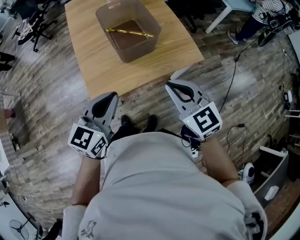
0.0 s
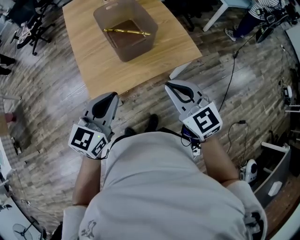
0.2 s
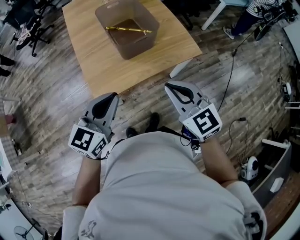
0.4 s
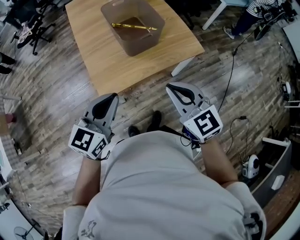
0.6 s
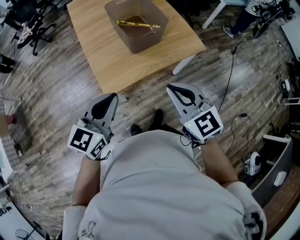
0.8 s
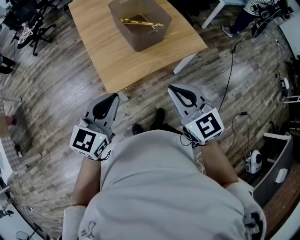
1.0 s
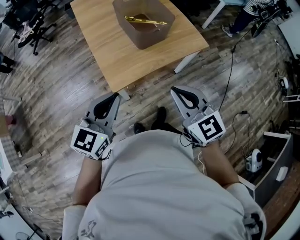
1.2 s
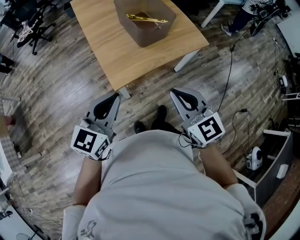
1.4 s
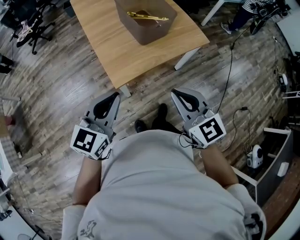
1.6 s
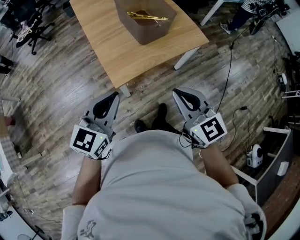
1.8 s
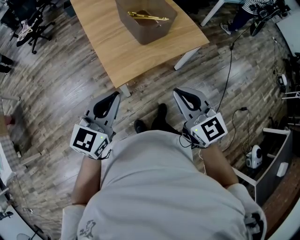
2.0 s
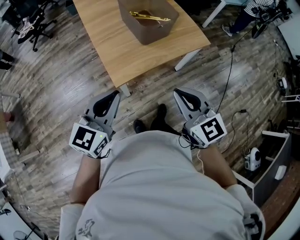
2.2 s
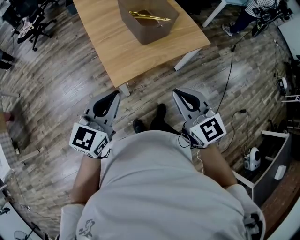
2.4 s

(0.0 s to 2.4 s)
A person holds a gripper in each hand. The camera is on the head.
0.0 s - 1.2 s: The right gripper moves backward and to the left, about 15 cm, while the left gripper is displaced to the left and backward by roughly 15 cm.
1.2 s - 2.4 s: There are only small adjustments of the grippers.

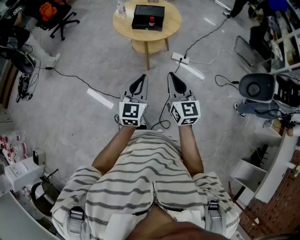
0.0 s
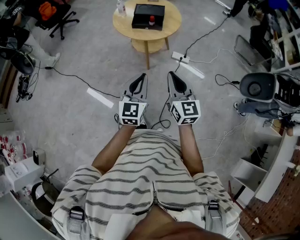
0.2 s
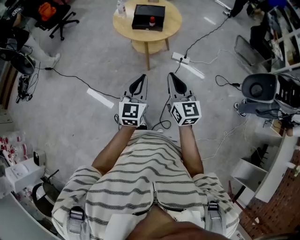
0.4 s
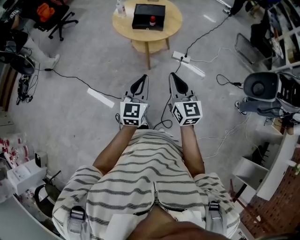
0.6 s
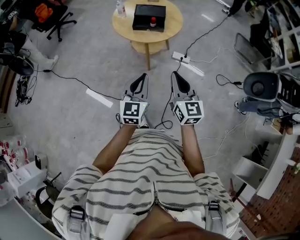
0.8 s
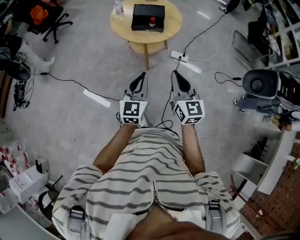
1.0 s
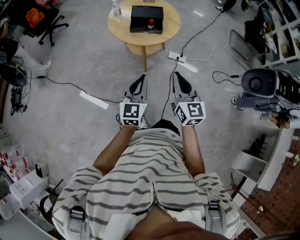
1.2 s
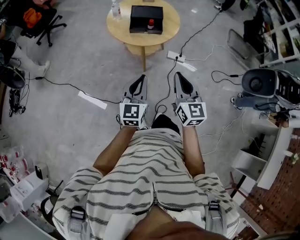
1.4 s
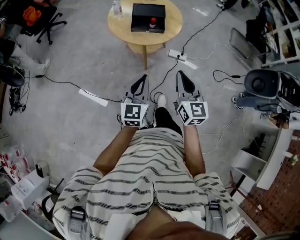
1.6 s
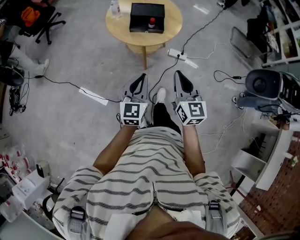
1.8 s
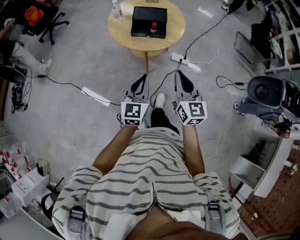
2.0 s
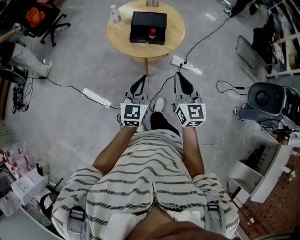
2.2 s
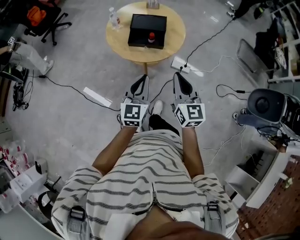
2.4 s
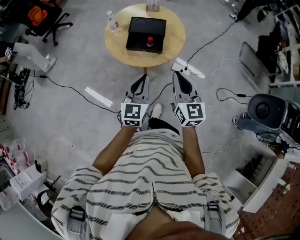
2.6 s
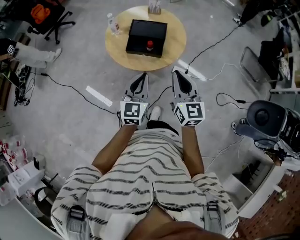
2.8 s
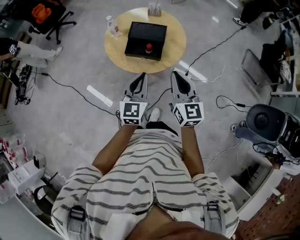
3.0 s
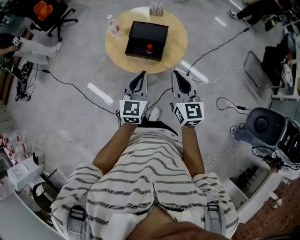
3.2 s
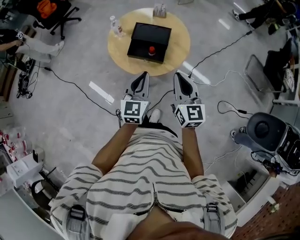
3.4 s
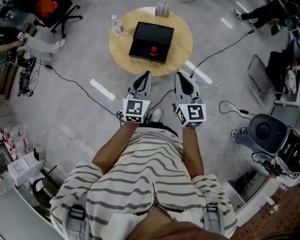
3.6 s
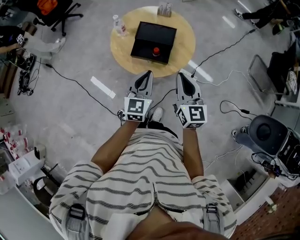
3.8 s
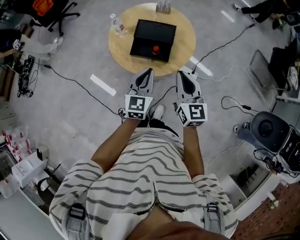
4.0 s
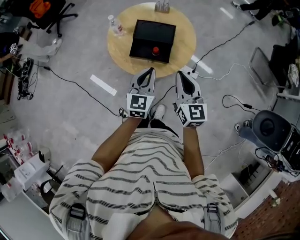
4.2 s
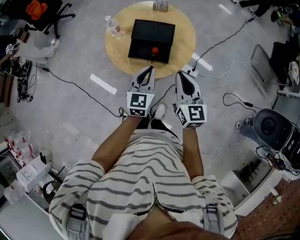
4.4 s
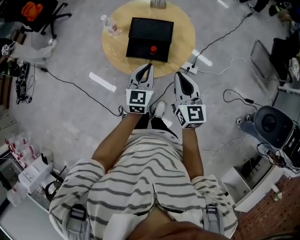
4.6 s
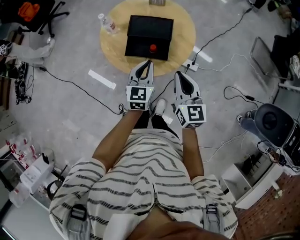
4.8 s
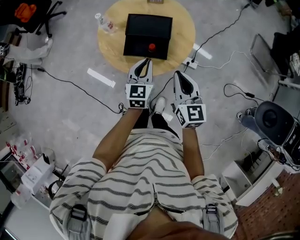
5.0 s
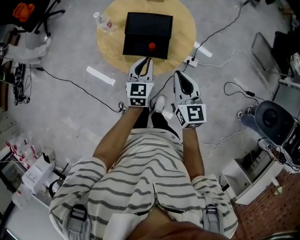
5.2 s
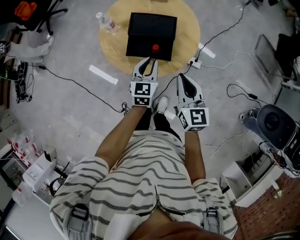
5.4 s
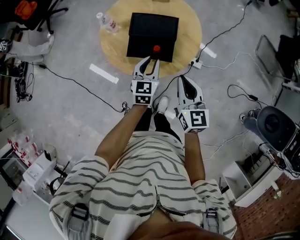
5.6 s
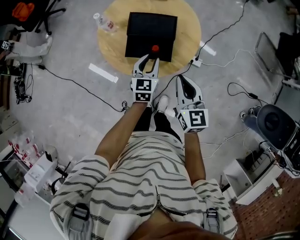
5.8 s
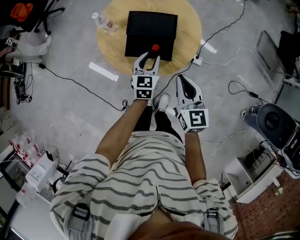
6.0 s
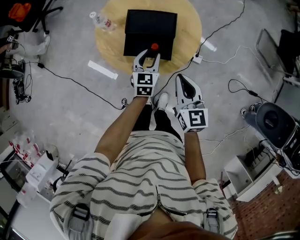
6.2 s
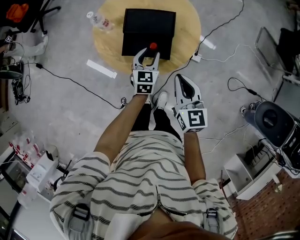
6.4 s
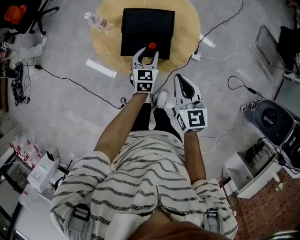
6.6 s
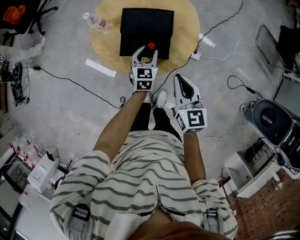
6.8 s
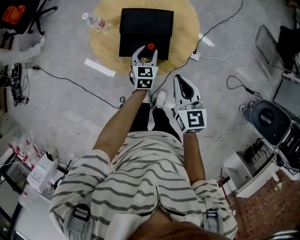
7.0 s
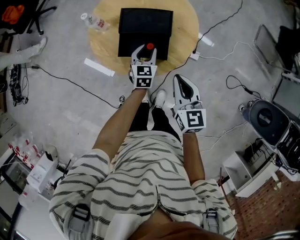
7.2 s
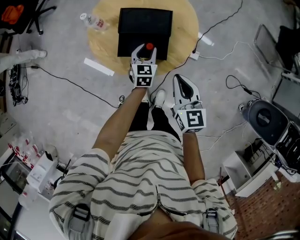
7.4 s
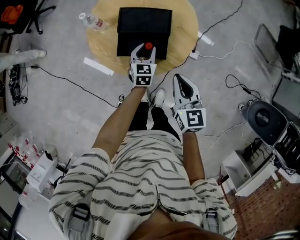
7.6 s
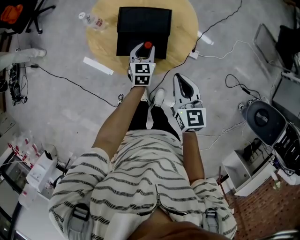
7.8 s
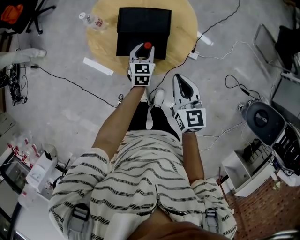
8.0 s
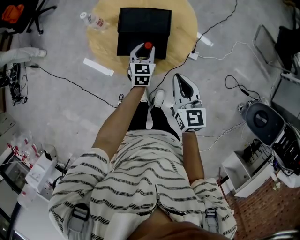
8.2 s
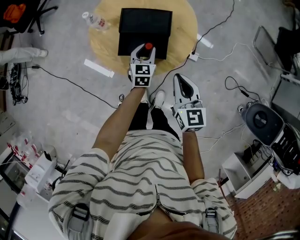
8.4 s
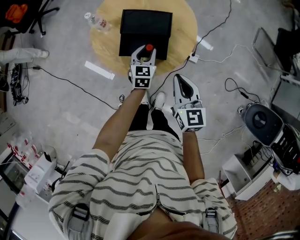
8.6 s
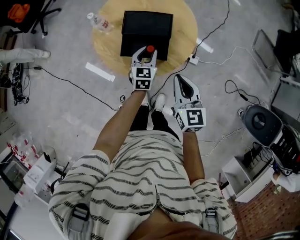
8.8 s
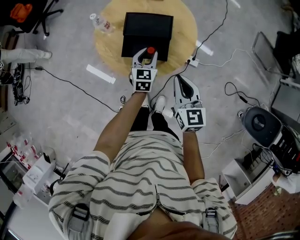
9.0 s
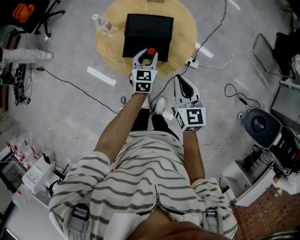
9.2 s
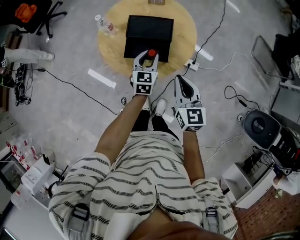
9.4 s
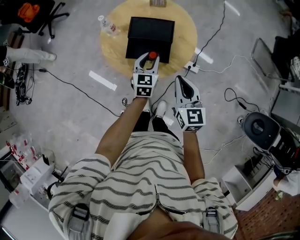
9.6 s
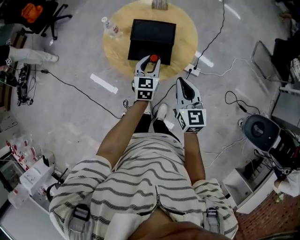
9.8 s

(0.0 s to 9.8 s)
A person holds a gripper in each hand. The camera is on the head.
0.0 s - 1.4 s: The right gripper heads forward, covering some 10 cm. Meanwhile the left gripper travels forward and to the left by about 10 cm.
1.4 s - 2.8 s: Both grippers travel together forward, approximately 20 cm.
2.8 s - 4.2 s: The two grippers go about 10 cm forward.
4.2 s - 5.6 s: The right gripper moves downward, roughly 5 cm, while the left gripper shifts some 15 cm downward and forward.
5.6 s - 7.0 s: The left gripper moves downward and forward, approximately 10 cm.
7.0 s - 8.4 s: Both grippers stay put.
8.4 s - 9.8 s: The left gripper heads upward and backward, covering some 10 cm.

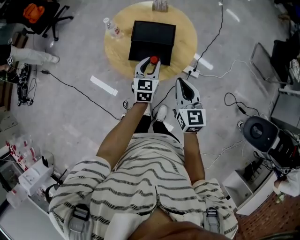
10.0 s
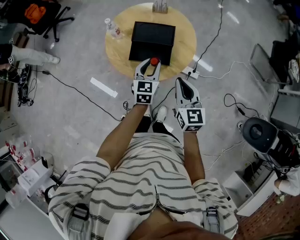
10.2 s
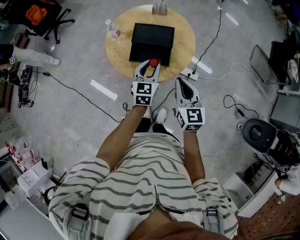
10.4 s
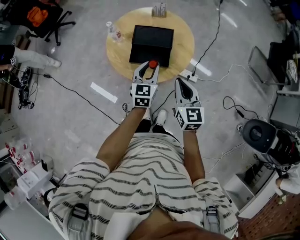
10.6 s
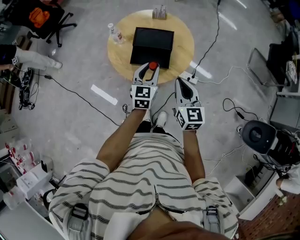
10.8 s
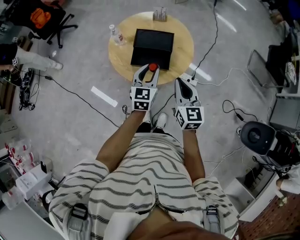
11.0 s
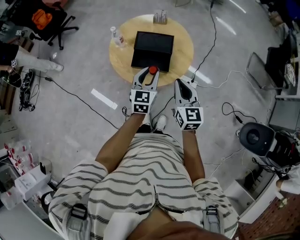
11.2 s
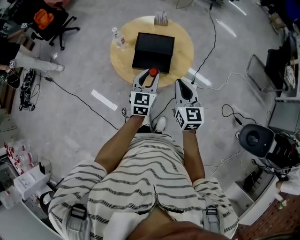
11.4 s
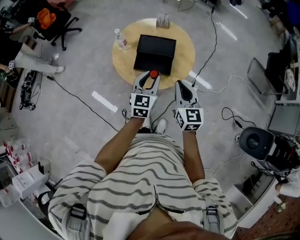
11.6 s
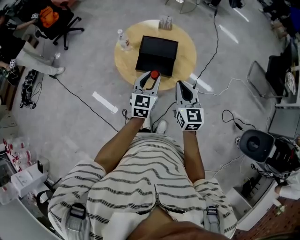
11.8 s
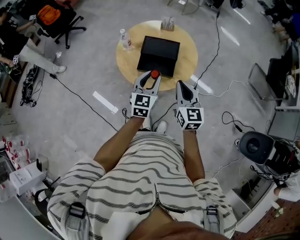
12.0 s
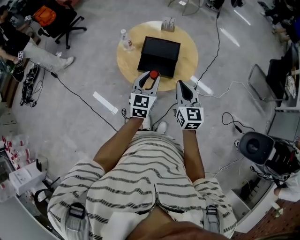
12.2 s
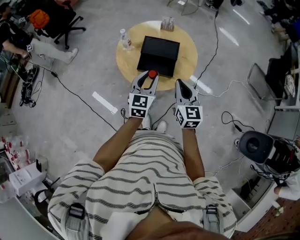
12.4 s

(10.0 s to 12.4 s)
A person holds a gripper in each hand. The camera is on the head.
10.0 s - 11.2 s: The left gripper shifts roughly 5 cm upward.
11.2 s - 12.4 s: The grippers stay close to where they were, moving slightly.

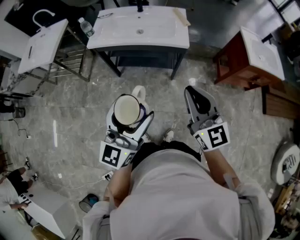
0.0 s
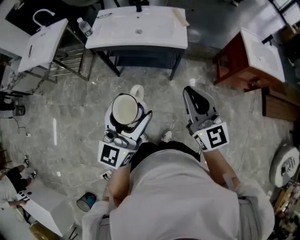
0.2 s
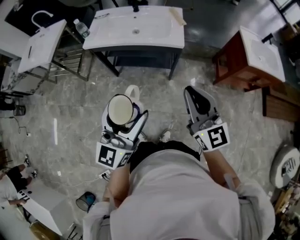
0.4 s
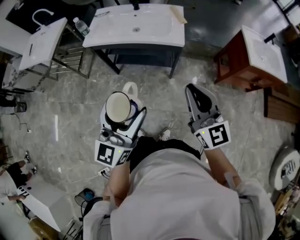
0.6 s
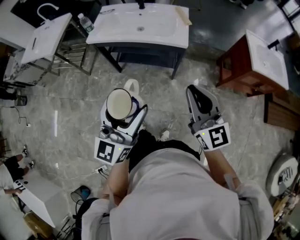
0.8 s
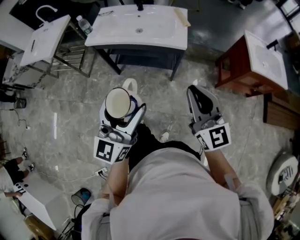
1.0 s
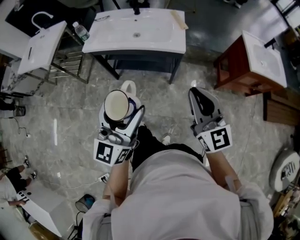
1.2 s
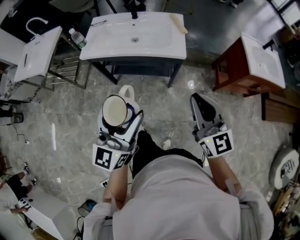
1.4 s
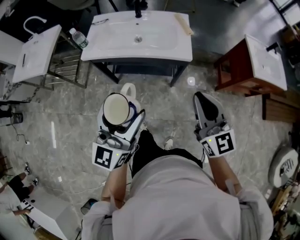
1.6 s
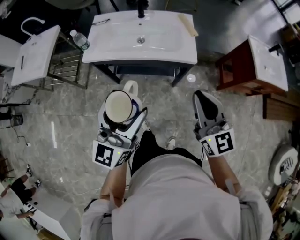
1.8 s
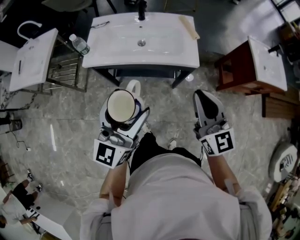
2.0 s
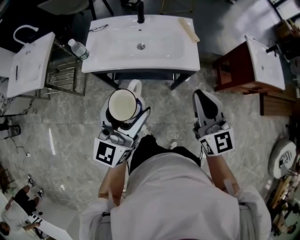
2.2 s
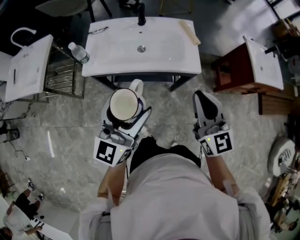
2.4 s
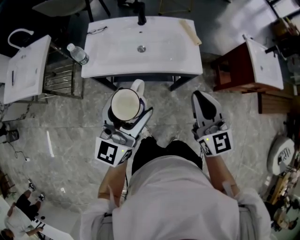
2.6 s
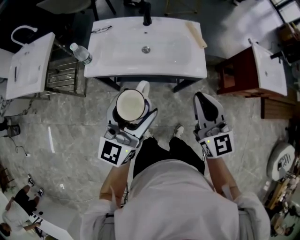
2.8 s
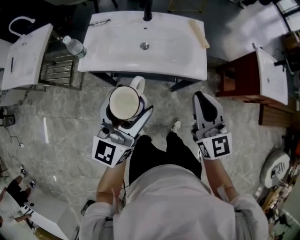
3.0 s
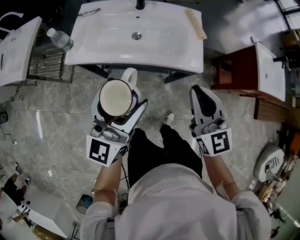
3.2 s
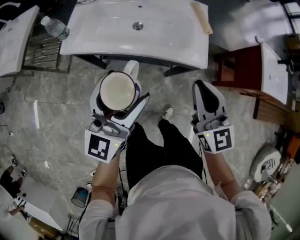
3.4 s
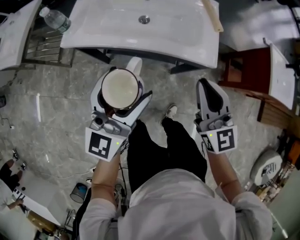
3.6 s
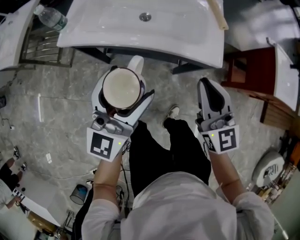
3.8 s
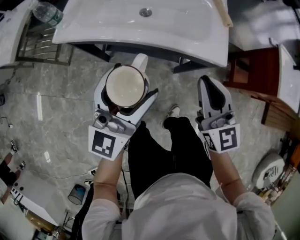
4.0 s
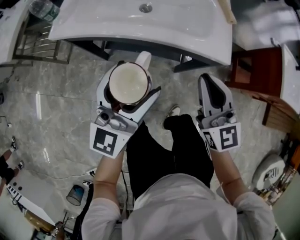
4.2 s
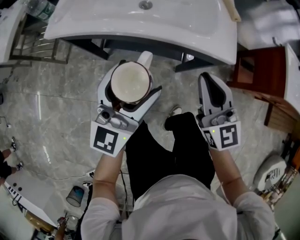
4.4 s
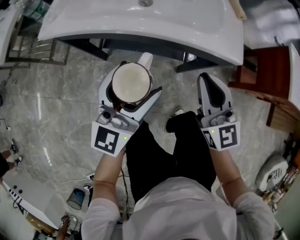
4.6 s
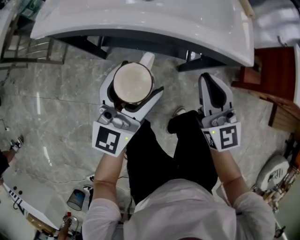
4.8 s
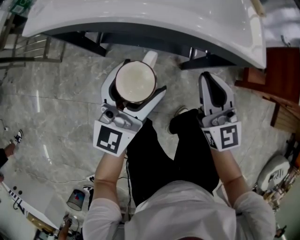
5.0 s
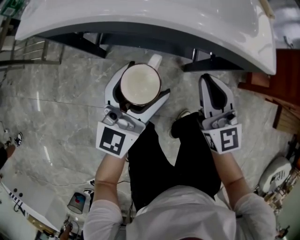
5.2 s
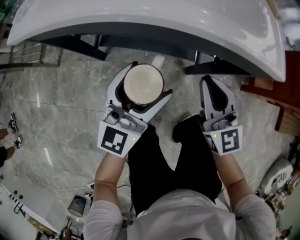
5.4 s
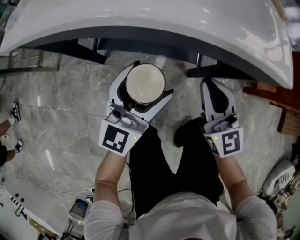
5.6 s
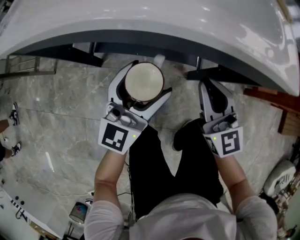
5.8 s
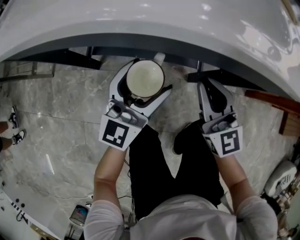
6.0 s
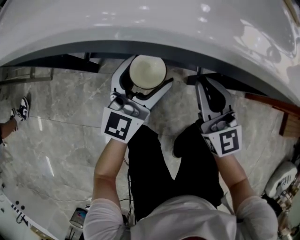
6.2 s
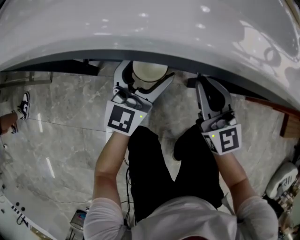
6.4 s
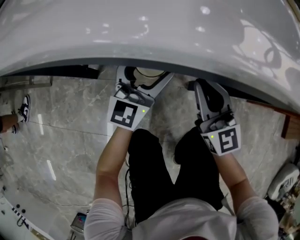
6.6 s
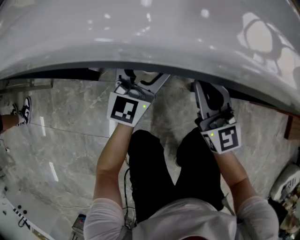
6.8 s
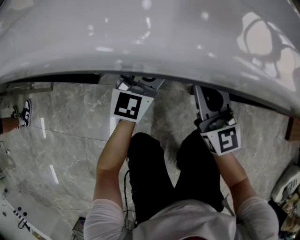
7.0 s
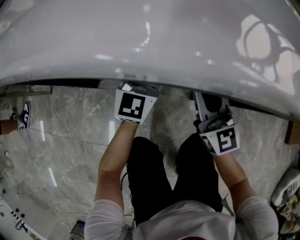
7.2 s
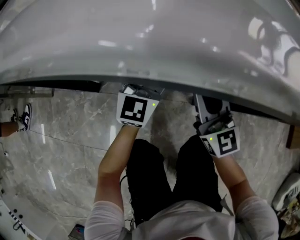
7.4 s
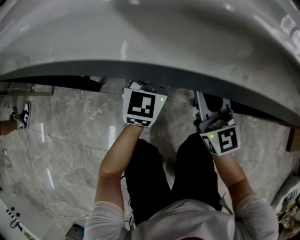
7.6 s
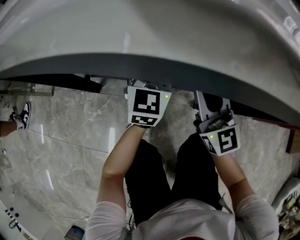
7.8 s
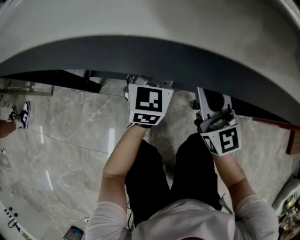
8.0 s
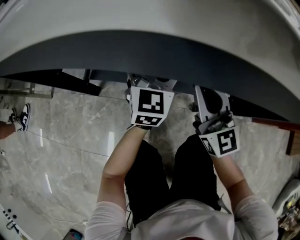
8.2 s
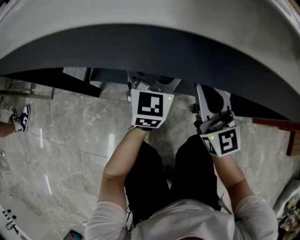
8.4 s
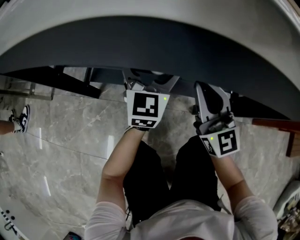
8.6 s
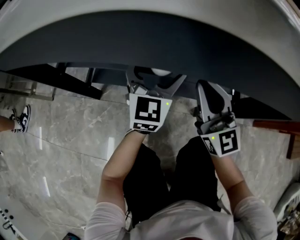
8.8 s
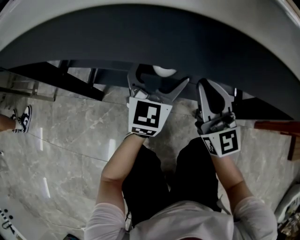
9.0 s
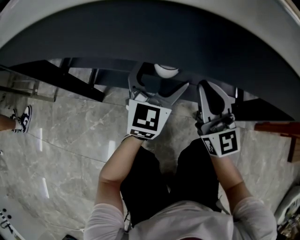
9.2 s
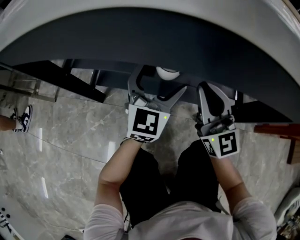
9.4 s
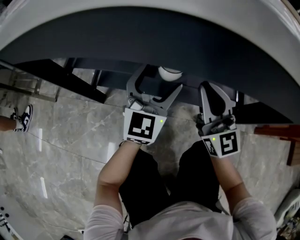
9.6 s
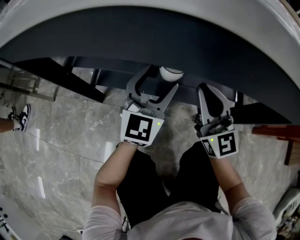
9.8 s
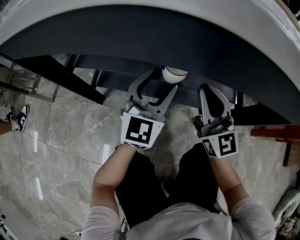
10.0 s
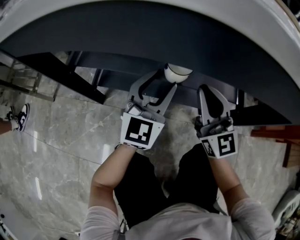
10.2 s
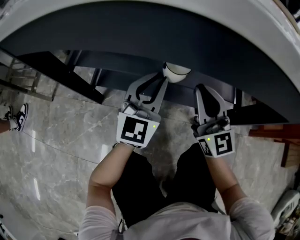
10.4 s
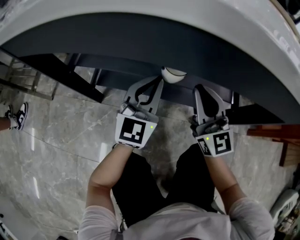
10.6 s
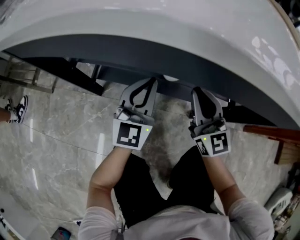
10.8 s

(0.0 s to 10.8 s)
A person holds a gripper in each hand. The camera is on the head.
0.0 s - 1.6 s: Both grippers move forward, some 10 cm.
1.6 s - 3.0 s: Both grippers travel together forward and to the left, about 15 cm.
3.0 s - 4.6 s: The grippers both shift downward by about 25 cm.
4.6 s - 6.2 s: The right gripper heads downward, covering about 20 cm; the left gripper travels downward and forward by about 30 cm.
6.2 s - 7.8 s: The left gripper shifts about 15 cm forward and downward, and rotates about 20 degrees; the right gripper is displaced downward and forward by roughly 10 cm.
7.8 s - 9.2 s: The grippers stay close to where they were, moving slightly.
9.2 s - 10.8 s: The left gripper goes some 5 cm to the left, and closes up.
